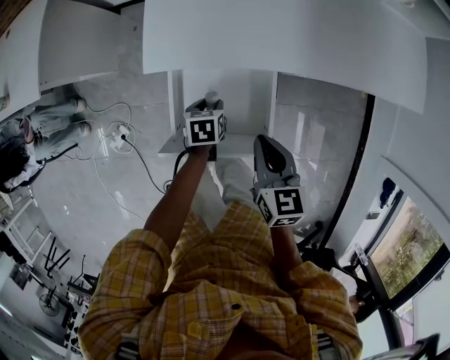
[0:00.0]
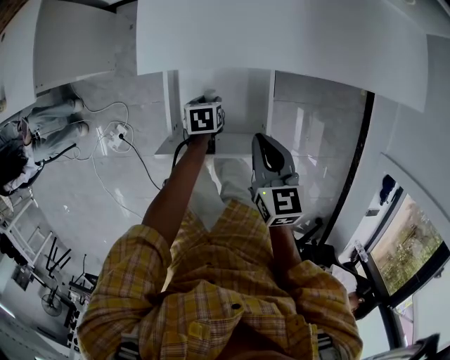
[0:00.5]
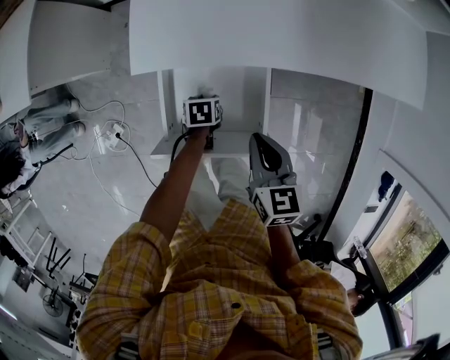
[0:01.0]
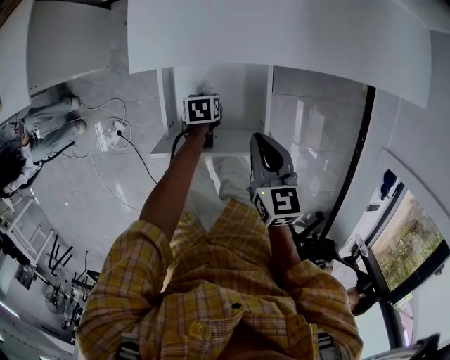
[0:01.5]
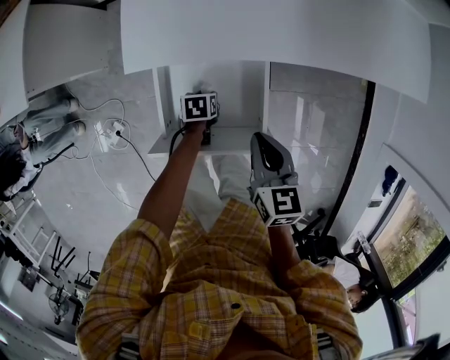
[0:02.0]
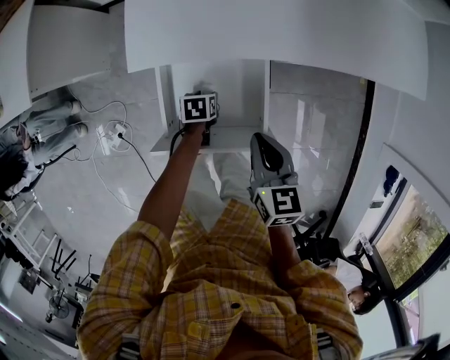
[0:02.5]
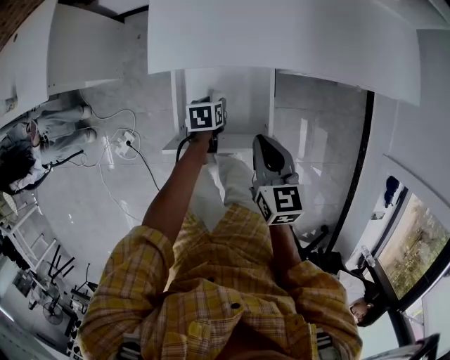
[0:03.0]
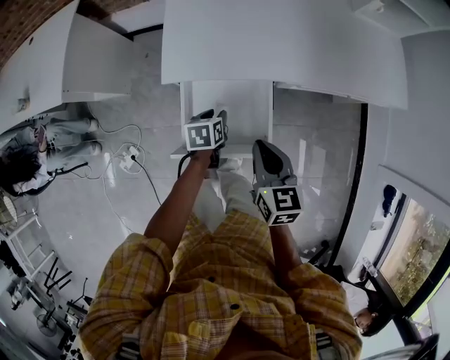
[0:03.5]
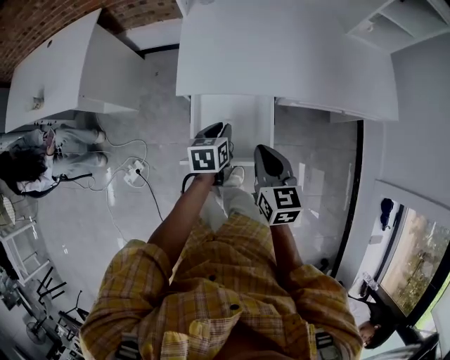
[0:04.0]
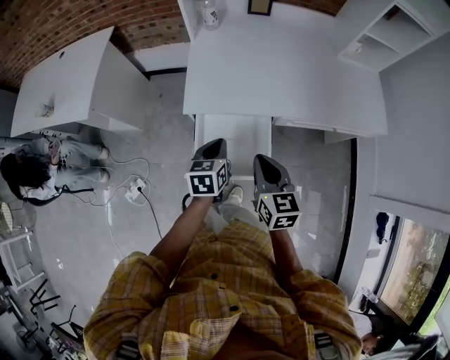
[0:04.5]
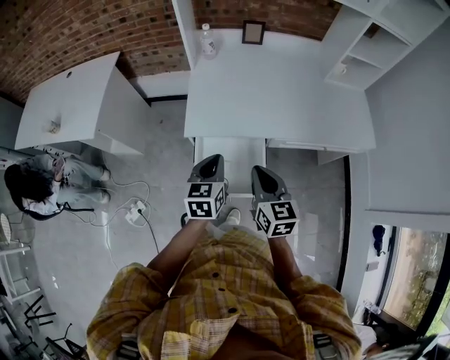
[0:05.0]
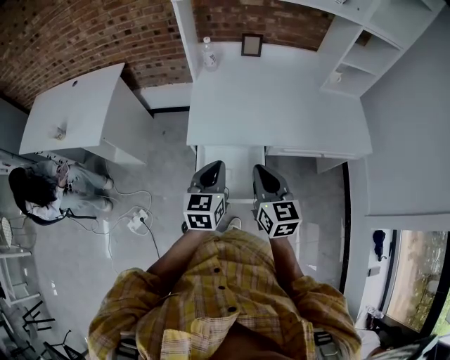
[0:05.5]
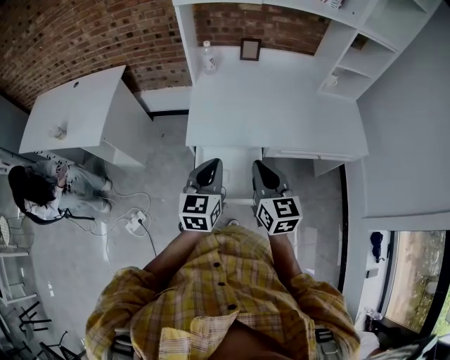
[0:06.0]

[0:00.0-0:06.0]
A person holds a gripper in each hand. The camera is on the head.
0:00.0 to 0:02.0: The left gripper shifts approximately 10 cm downward.
0:02.0 to 0:04.0: The right gripper heads upward, covering some 15 cm. The left gripper shifts approximately 25 cm upward, rotates approximately 30 degrees, and closes.
0:04.0 to 0:06.0: The right gripper heads upward, covering approximately 15 cm. The left gripper moves upward, some 25 cm, rotates about 40 degrees, and closes.

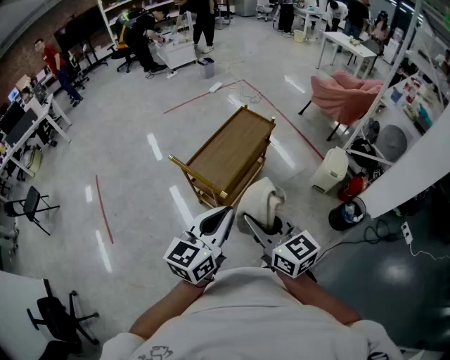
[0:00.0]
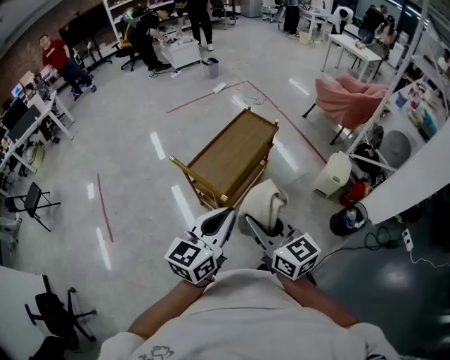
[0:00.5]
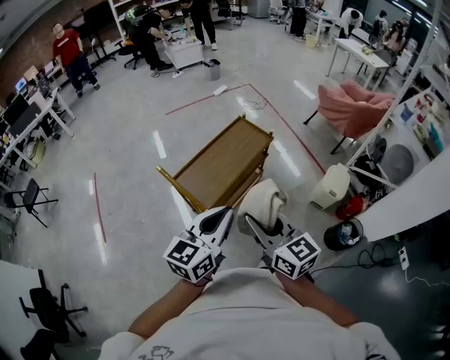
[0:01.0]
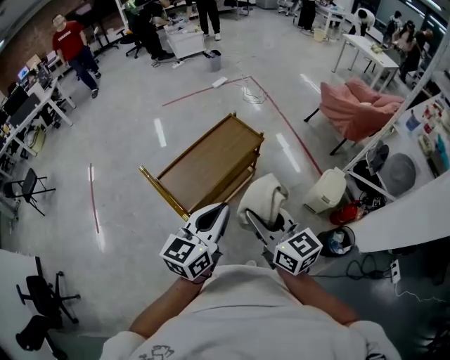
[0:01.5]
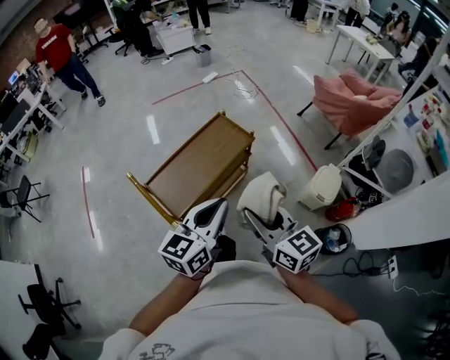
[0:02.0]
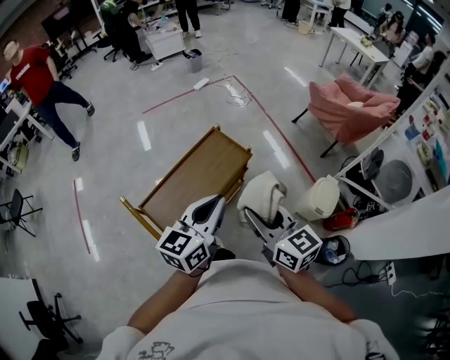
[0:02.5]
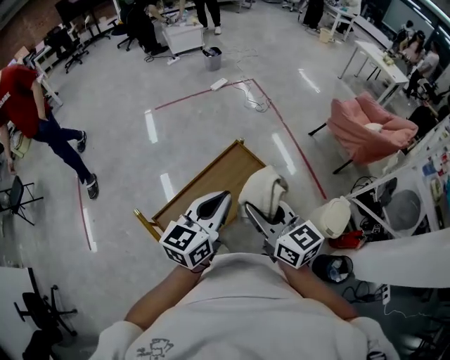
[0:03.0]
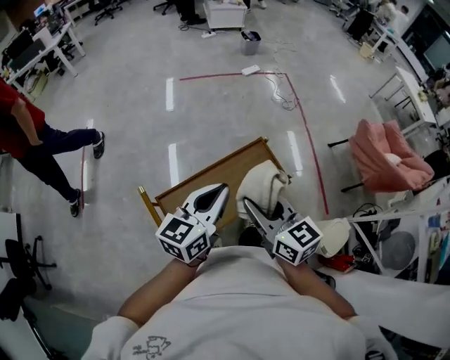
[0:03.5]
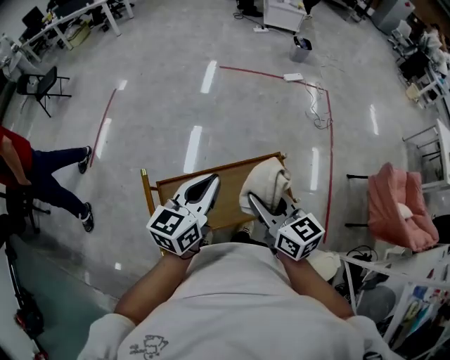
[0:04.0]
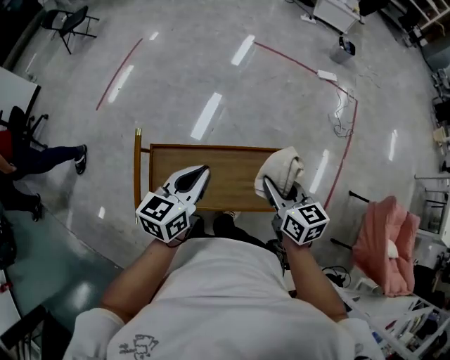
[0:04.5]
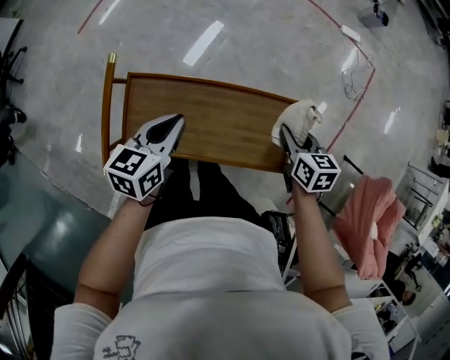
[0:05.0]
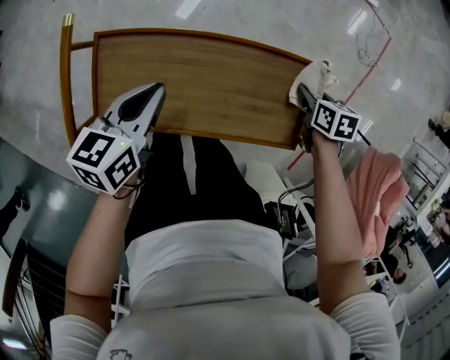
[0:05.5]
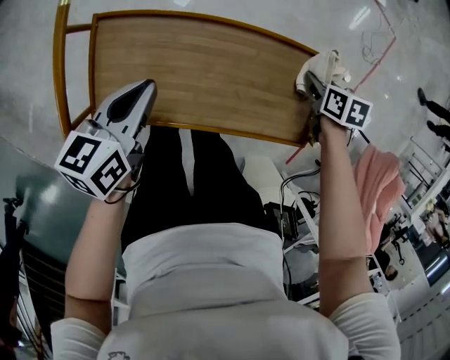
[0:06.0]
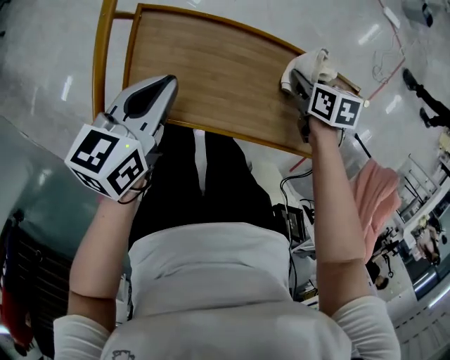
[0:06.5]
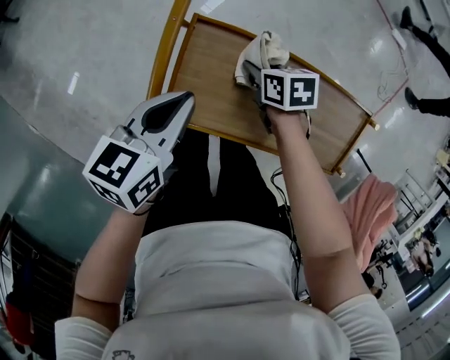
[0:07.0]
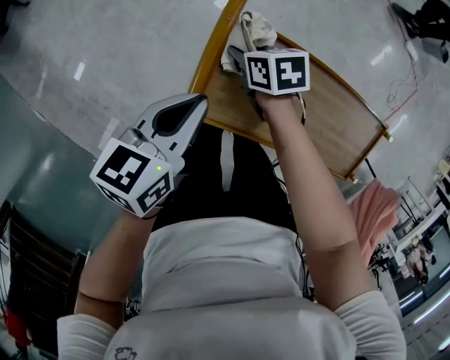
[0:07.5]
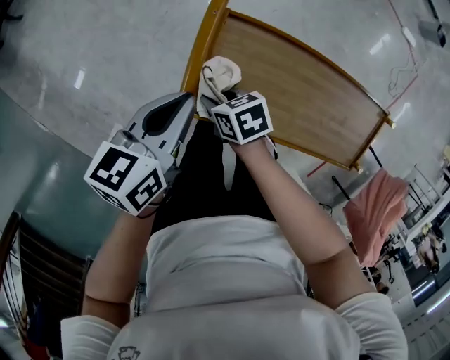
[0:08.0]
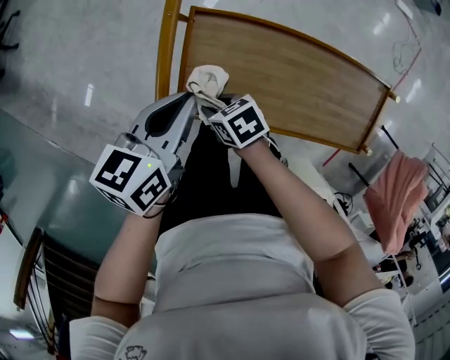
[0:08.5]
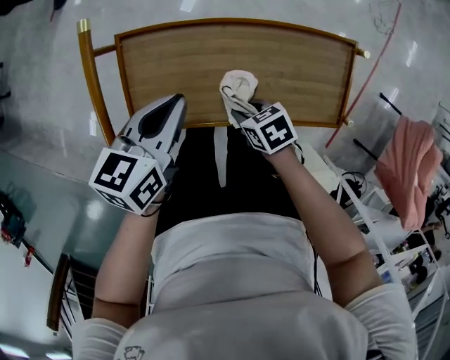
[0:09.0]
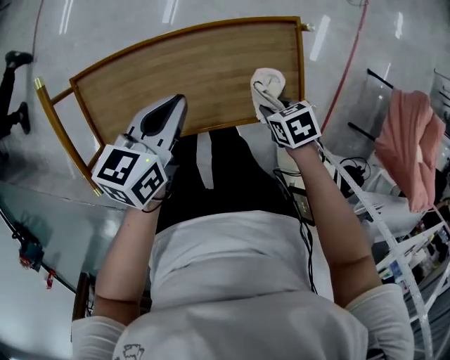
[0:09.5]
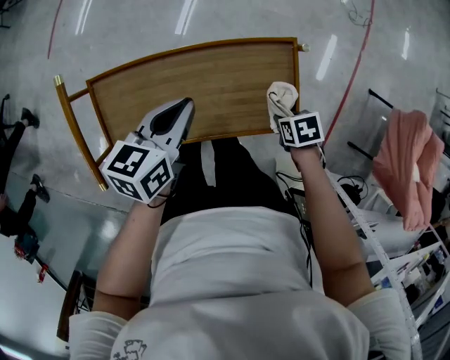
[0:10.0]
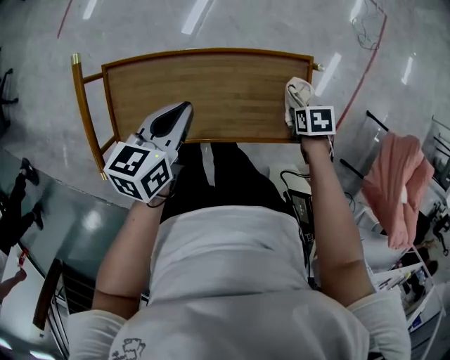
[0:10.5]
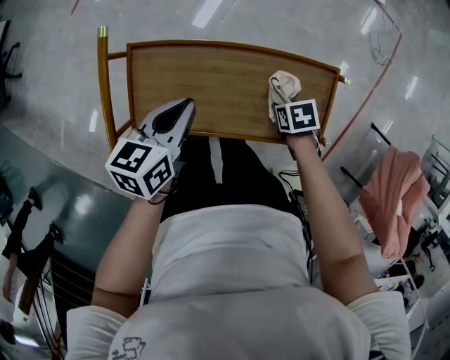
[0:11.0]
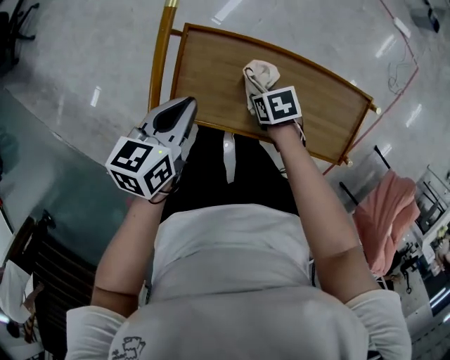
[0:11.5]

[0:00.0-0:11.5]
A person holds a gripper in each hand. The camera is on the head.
0:00.0 to 0:02.0: The right gripper moves to the right and forward, about 35 cm. The left gripper heads forward and to the right, covering approximately 30 cm.
0:02.0 to 0:04.0: The pair of grippers is taken roughly 40 cm. The left gripper swivels some 30 degrees; the right gripper rotates about 30 degrees.
0:04.0 to 0:06.0: The left gripper moves downward, approximately 35 cm, and changes its angle by approximately 30 degrees; the right gripper heads downward and to the right, covering about 50 cm, and angles its fingers downward, by about 50 degrees.
0:06.0 to 0:07.5: The right gripper moves to the left, about 50 cm, and changes its angle by roughly 30 degrees. Meanwhile the left gripper moves to the left, some 20 cm.
0:07.5 to 0:09.5: The right gripper moves roughly 50 cm, and rotates approximately 20 degrees. Meanwhile the left gripper shifts by some 35 cm, and changes its angle by some 20 degrees.
0:09.5 to 0:11.5: The right gripper shifts by roughly 30 cm. Meanwhile the left gripper moves about 25 cm, and swivels about 20 degrees.

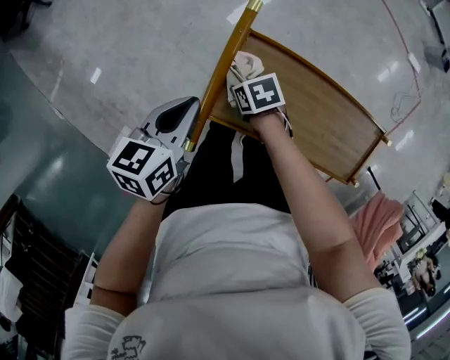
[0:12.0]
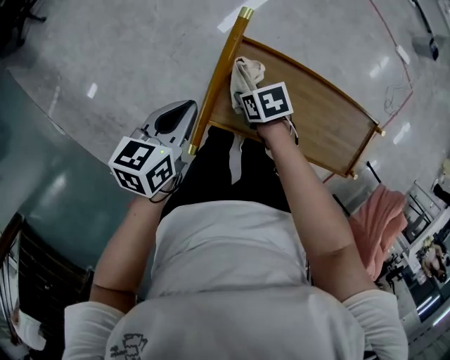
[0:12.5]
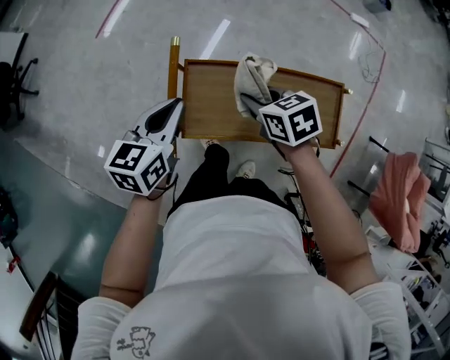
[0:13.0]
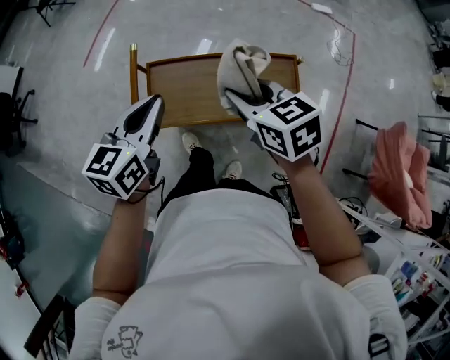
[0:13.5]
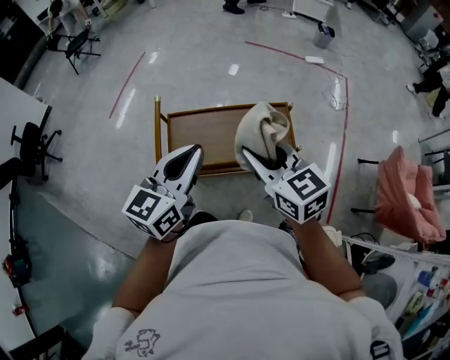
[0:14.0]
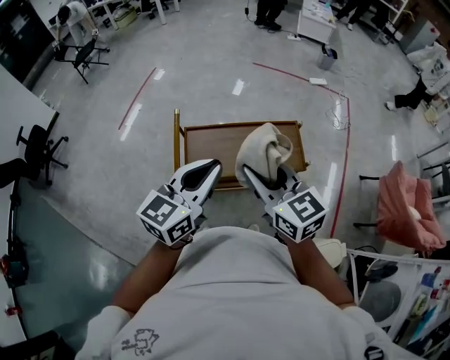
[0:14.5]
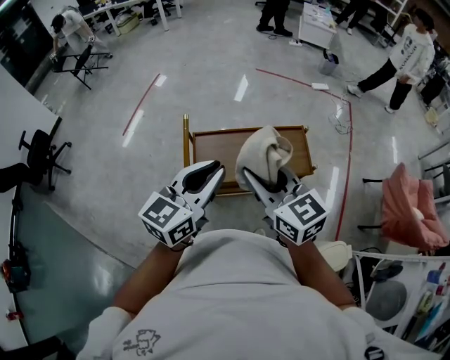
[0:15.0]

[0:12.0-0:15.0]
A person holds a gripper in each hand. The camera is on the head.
0:12.0 to 0:13.5: The left gripper goes about 20 cm upward, and swivels approximately 30 degrees. Meanwhile the right gripper is displaced upward by some 40 cm, and tilts its fingers roughly 30 degrees upward.
0:13.5 to 0:15.0: The right gripper heads upward, backward and to the left, covering roughly 25 cm, and changes its angle by about 30 degrees, while the left gripper goes roughly 20 cm upward and backward, and rotates approximately 20 degrees.

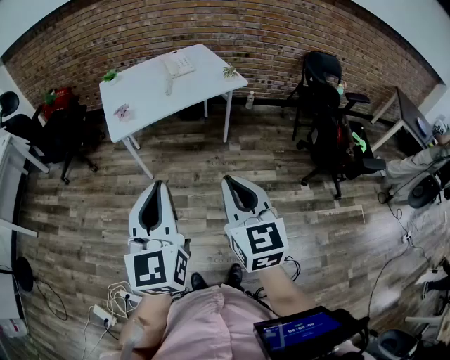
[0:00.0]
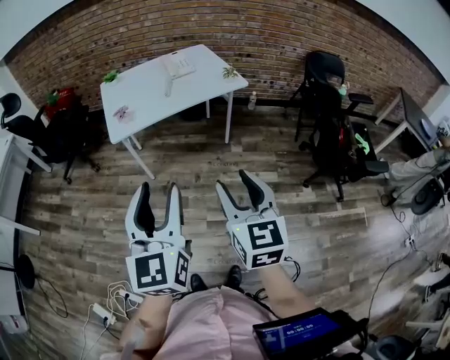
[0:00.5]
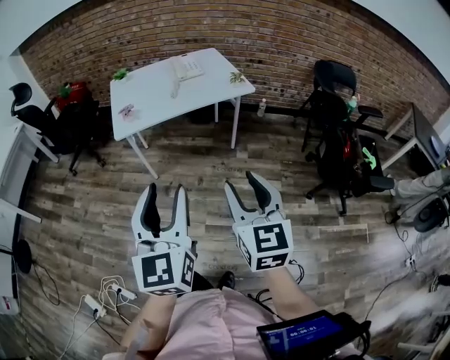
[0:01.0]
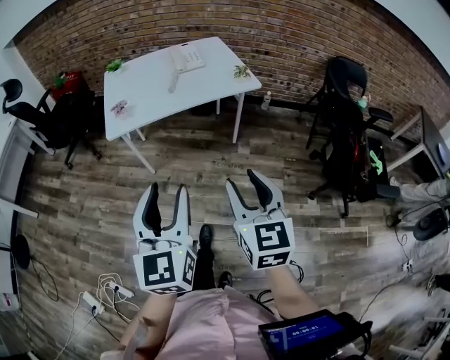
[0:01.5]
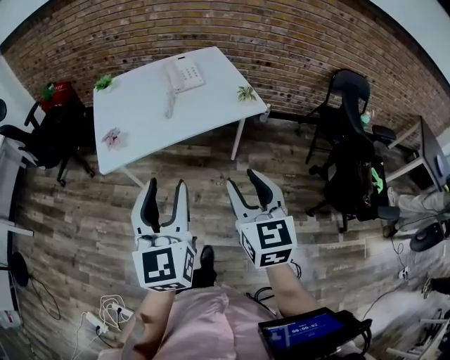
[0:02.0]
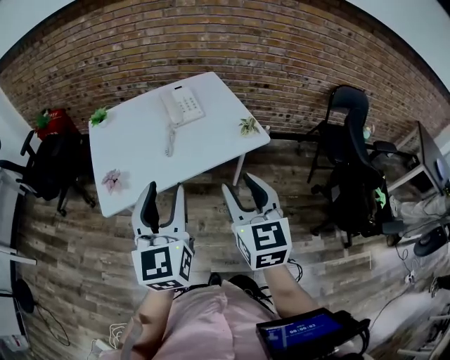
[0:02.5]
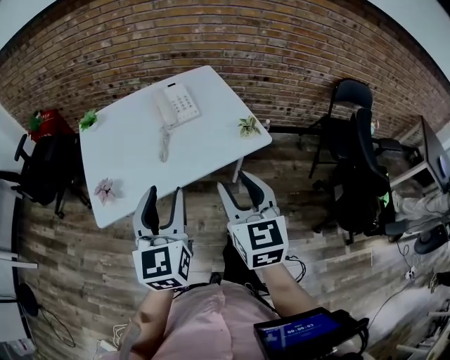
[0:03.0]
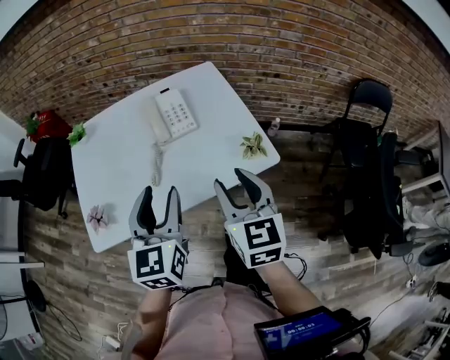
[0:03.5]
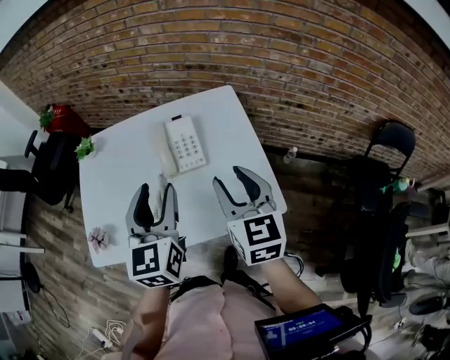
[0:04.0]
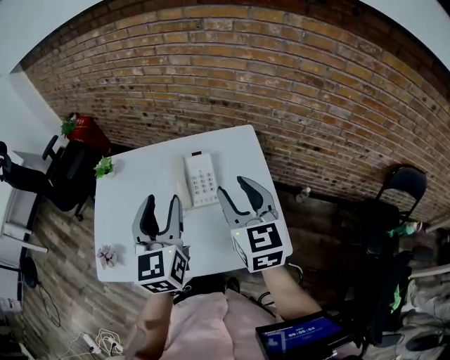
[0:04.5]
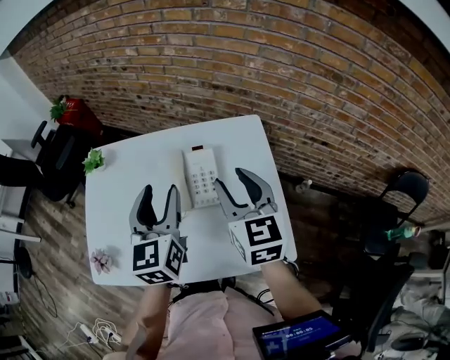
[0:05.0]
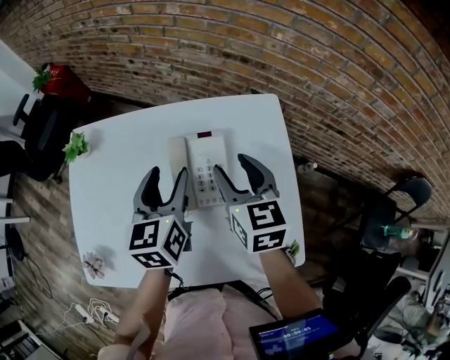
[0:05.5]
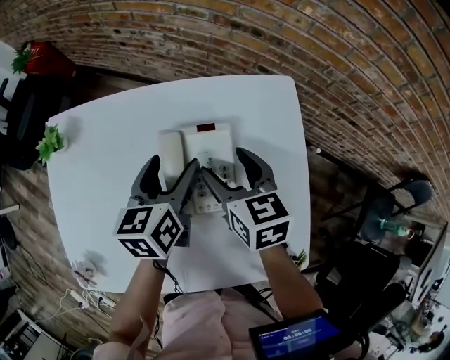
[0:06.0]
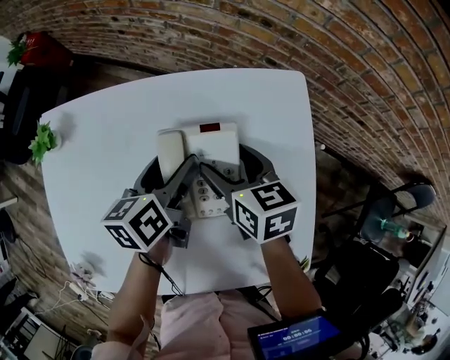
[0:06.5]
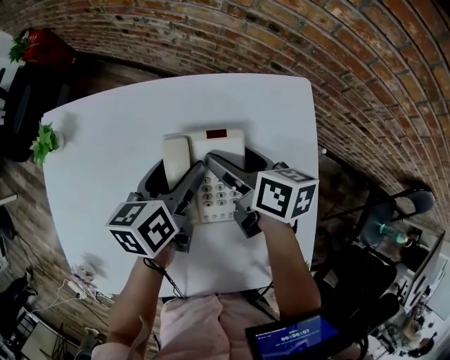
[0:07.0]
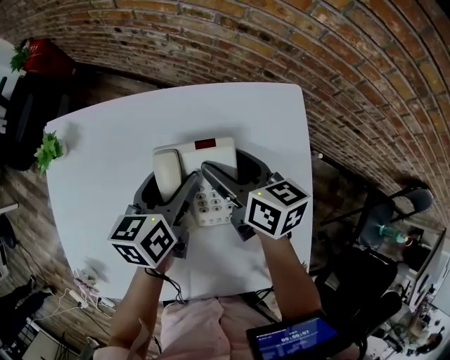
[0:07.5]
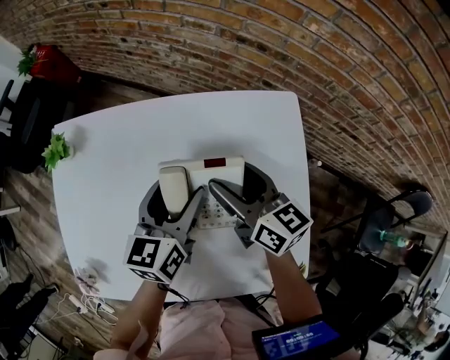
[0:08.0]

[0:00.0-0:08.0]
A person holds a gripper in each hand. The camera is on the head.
0:00.0 to 0:02.0: Both grippers travel together forward, approximately 25 cm. The left gripper opens its fingers. Meanwhile the right gripper opens its fingers.
0:02.0 to 0:04.0: The two grippers travel together, forward, about 40 cm.
0:04.0 to 0:06.0: The grippers both shift forward and downward by some 30 cm. The left gripper swivels approximately 30 degrees, while the right gripper turns by some 30 degrees, and opens its fingers.
0:06.0 to 0:08.0: The right gripper rotates roughly 30 degrees.
